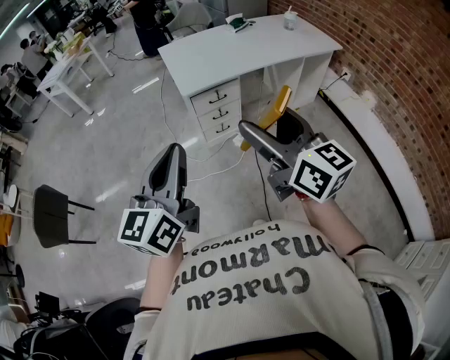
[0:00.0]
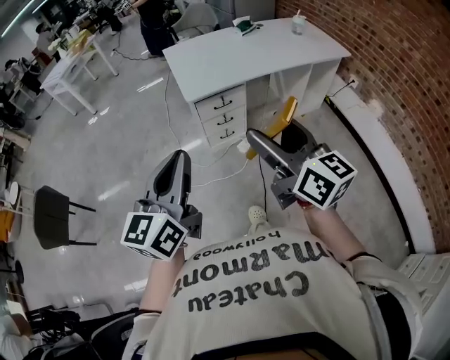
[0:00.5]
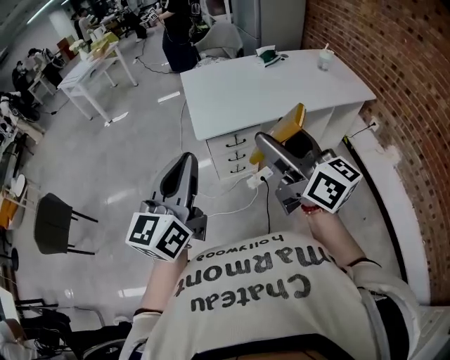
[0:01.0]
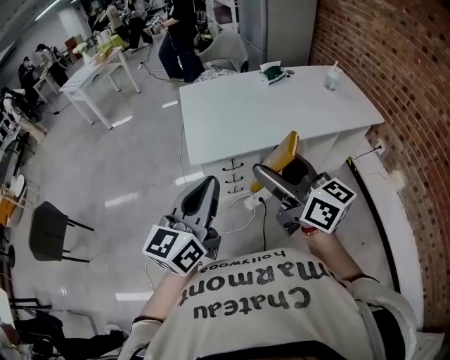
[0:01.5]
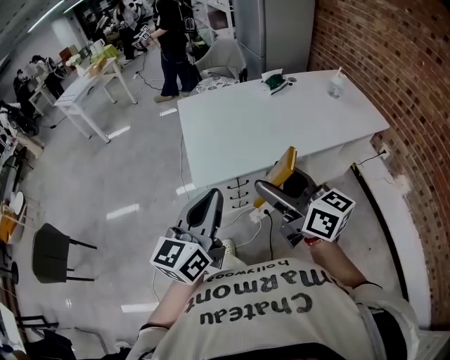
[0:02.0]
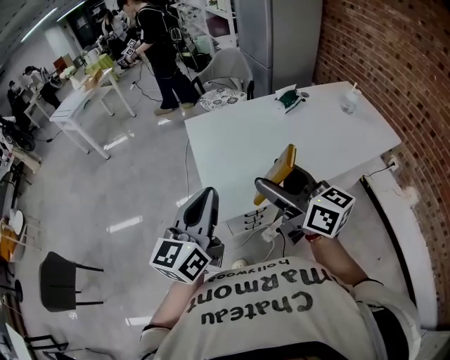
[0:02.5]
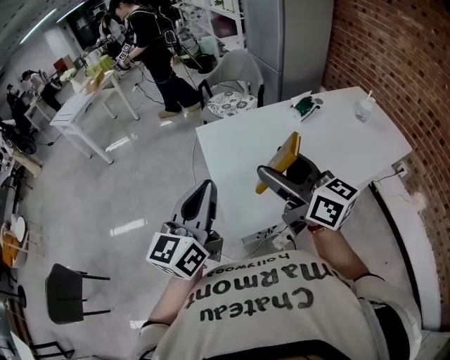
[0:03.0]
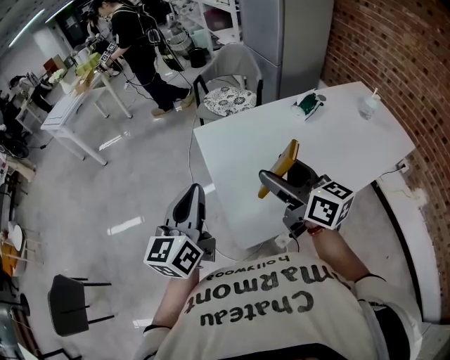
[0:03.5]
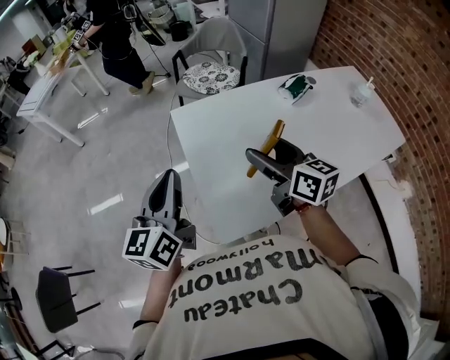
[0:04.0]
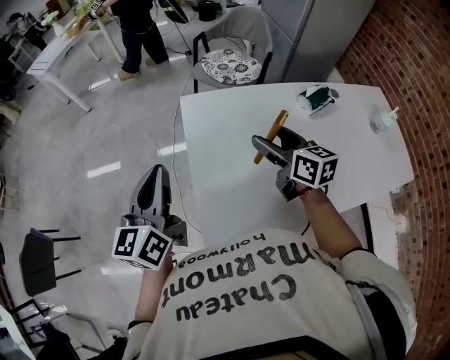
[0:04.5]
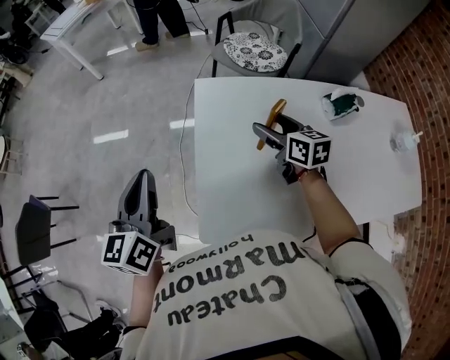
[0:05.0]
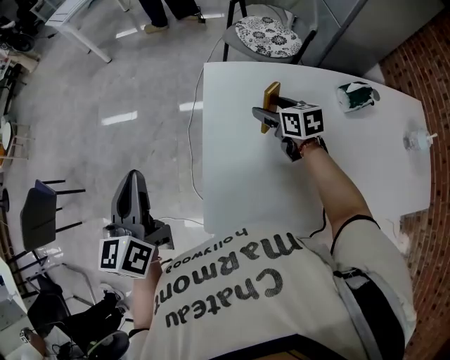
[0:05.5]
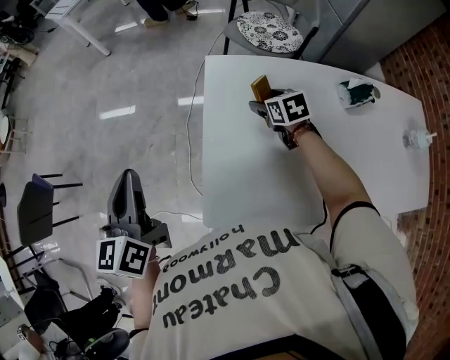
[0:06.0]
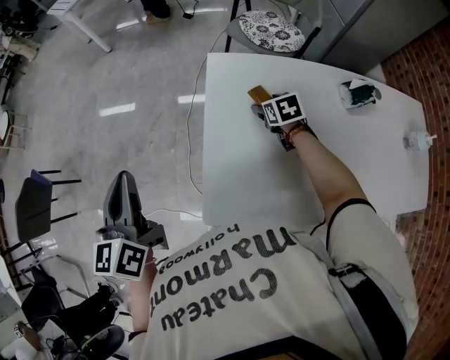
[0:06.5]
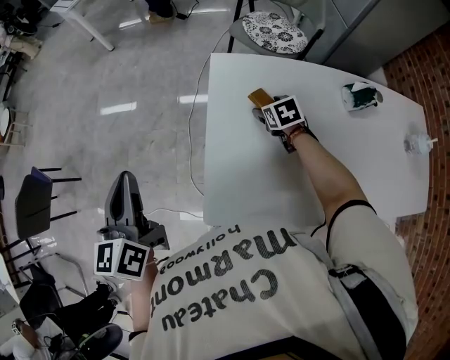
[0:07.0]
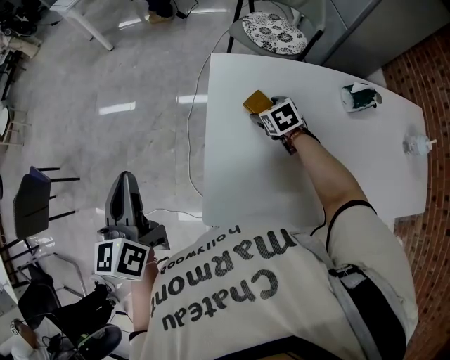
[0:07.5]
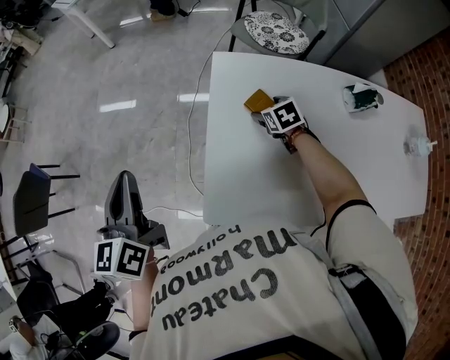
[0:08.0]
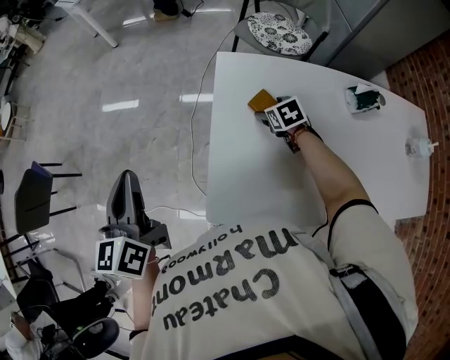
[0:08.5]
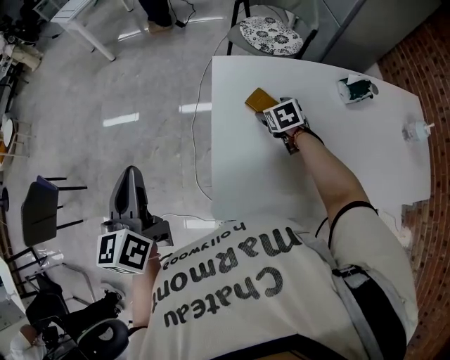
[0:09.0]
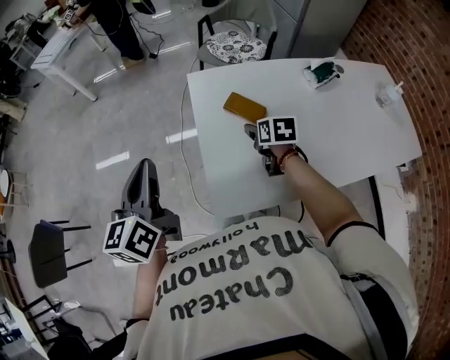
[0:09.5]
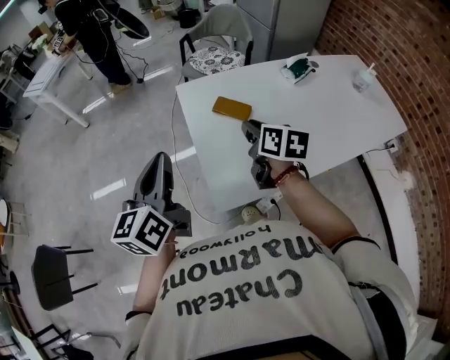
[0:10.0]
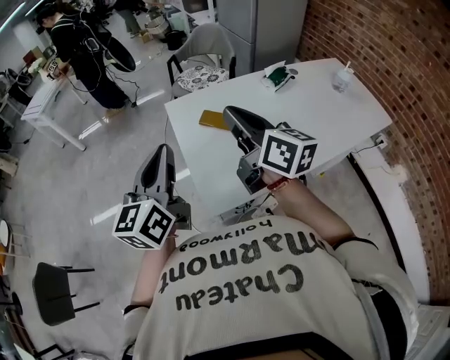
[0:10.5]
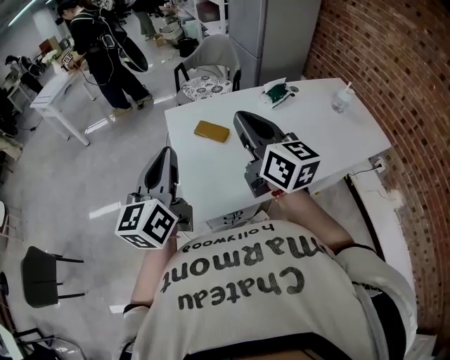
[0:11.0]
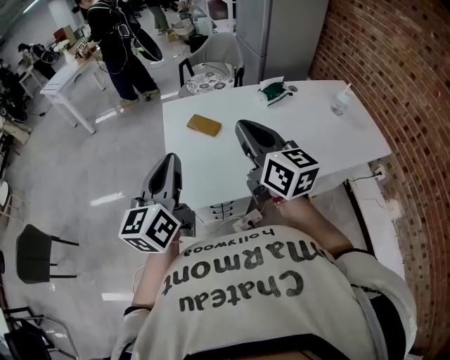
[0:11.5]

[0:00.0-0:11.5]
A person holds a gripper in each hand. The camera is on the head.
0:00.0 to 0:02.0: Both grippers travel together forward, about 35 cm.
0:02.0 to 0:04.0: The pair of grippers is taken forward, some 40 cm.
0:04.0 to 0:06.0: The right gripper moves downward, about 25 cm, and points its fingers some 40 degrees further downward. The left gripper moves some 10 cm, and turns by some 30 degrees.
0:06.0 to 0:07.5: The right gripper moves some 5 cm.
0:07.5 to 0:09.5: The right gripper heads backward and upward, covering approximately 15 cm, and turns by some 40 degrees.
0:09.5 to 0:11.5: The left gripper goes roughly 25 cm to the right and backward. Meanwhile the right gripper moves upward and backward, roughly 35 cm, points its fingers some 50 degrees further upward, and closes its fingers.

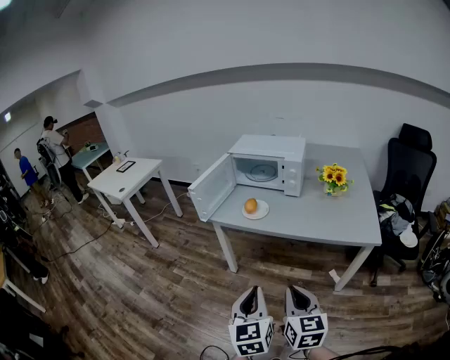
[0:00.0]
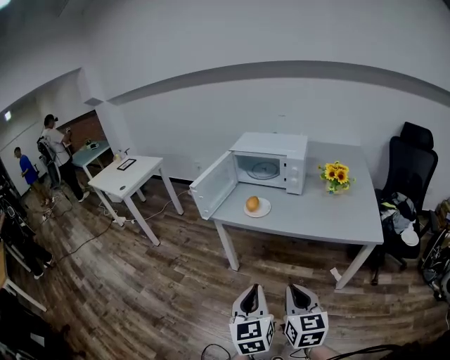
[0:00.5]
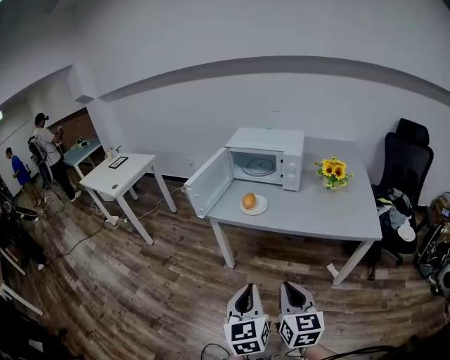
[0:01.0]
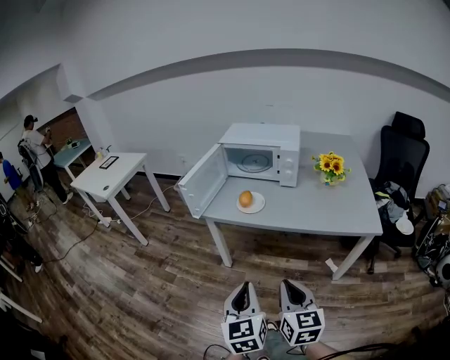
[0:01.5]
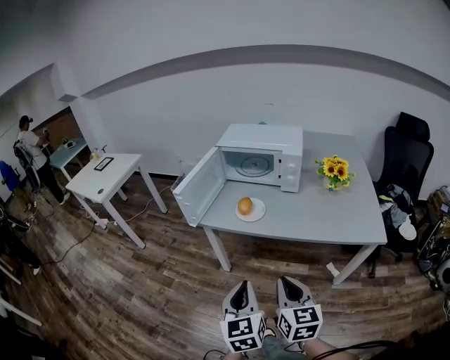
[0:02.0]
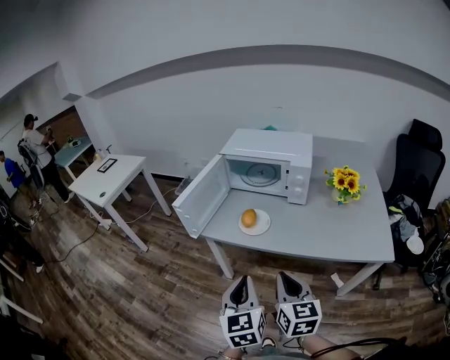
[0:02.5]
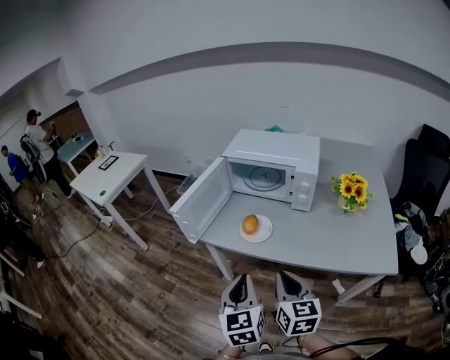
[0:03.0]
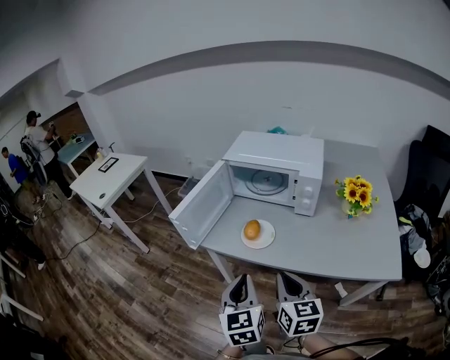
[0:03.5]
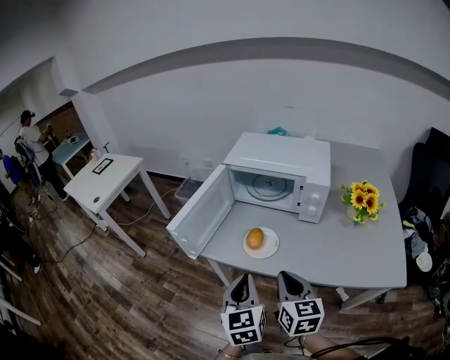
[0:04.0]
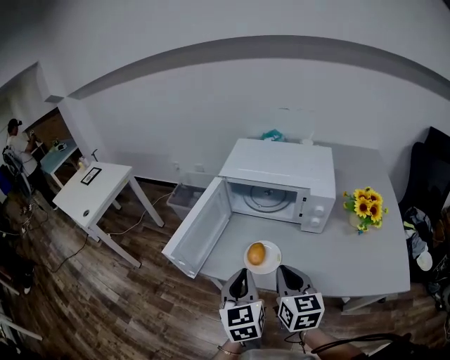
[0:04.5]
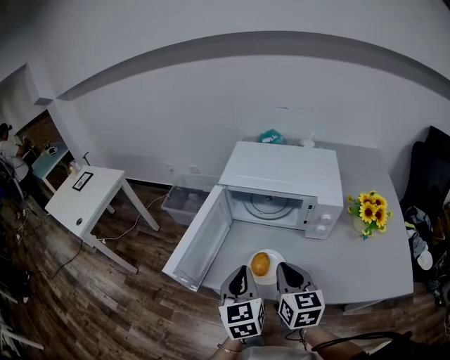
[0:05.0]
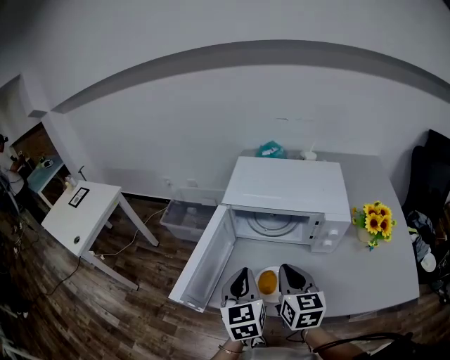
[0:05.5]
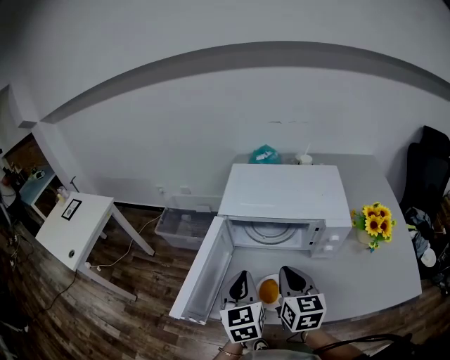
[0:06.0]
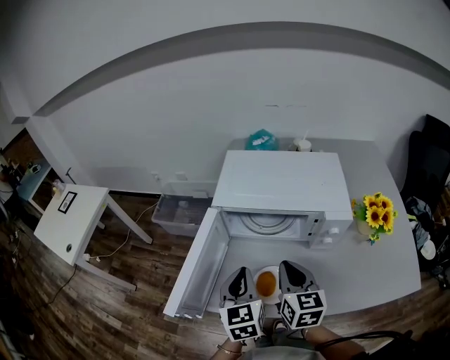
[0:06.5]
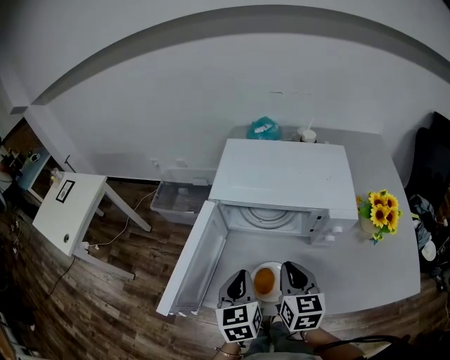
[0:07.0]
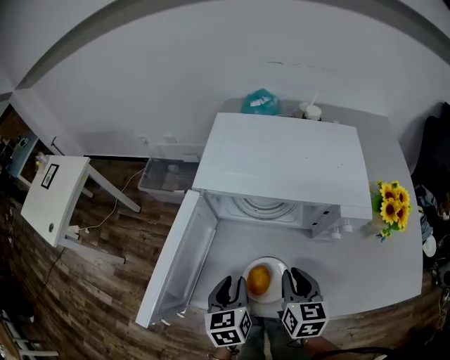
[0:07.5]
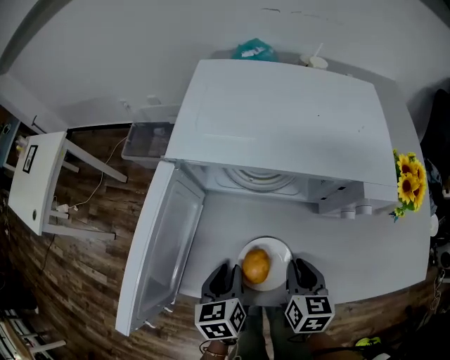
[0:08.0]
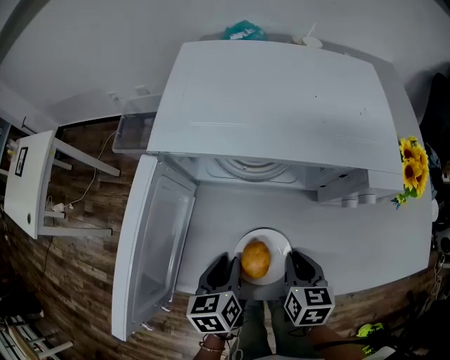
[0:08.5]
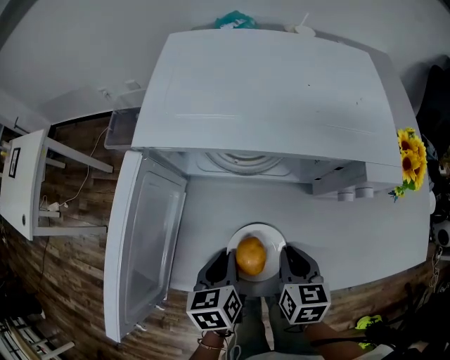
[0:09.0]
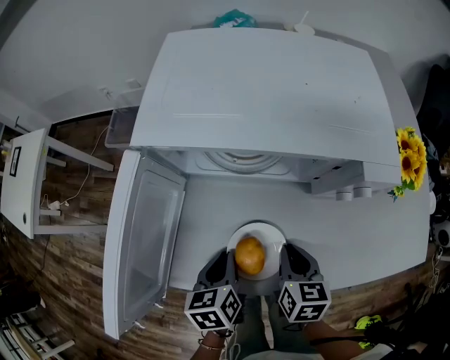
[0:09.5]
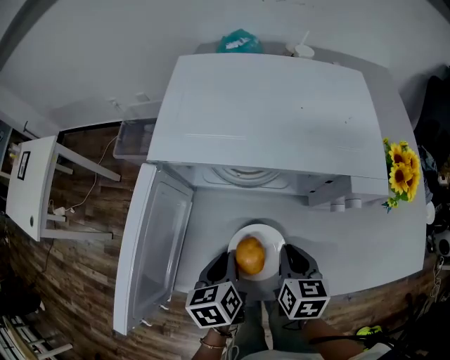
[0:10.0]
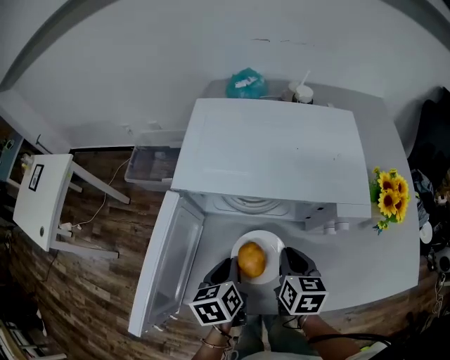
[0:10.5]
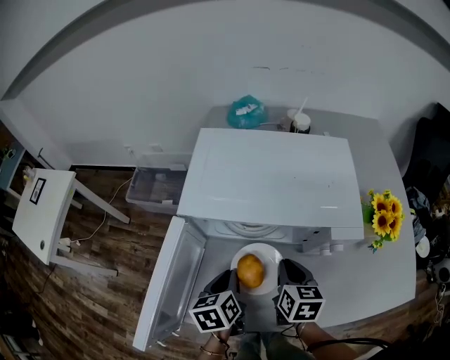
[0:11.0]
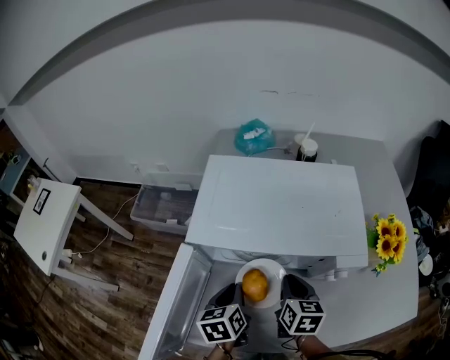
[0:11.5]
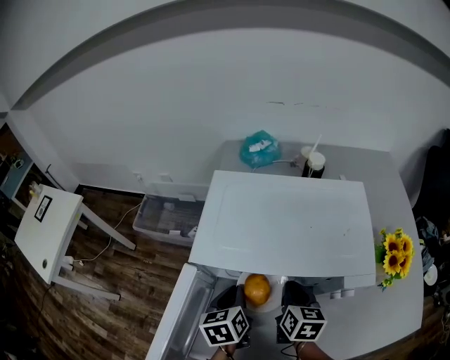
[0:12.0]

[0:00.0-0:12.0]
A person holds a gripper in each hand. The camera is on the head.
0:00.0 to 0:02.0: The two grippers go roughly 15 cm forward.
0:02.0 to 0:04.0: The grippers both shift forward by some 25 cm.
0:04.0 to 0:06.0: Both grippers move forward, approximately 25 cm.
0:06.0 to 0:08.0: The grippers both shift downward by about 20 cm. The right gripper swivels roughly 30 degrees, while the left gripper changes its angle by roughly 30 degrees, and opens.
0:08.0 to 0:10.0: The grippers move only a little.
0:10.0 to 0:12.0: The right gripper goes approximately 15 cm forward and upward. The left gripper shifts roughly 15 cm forward.

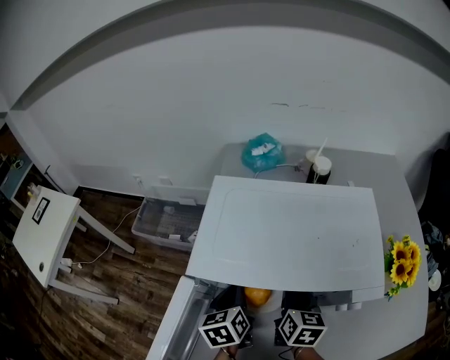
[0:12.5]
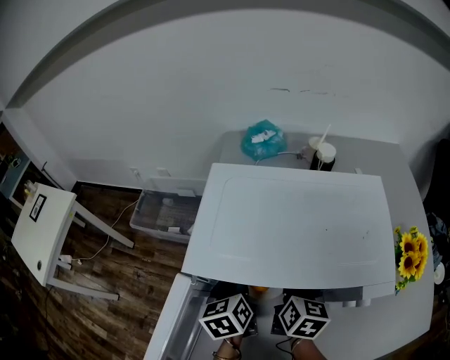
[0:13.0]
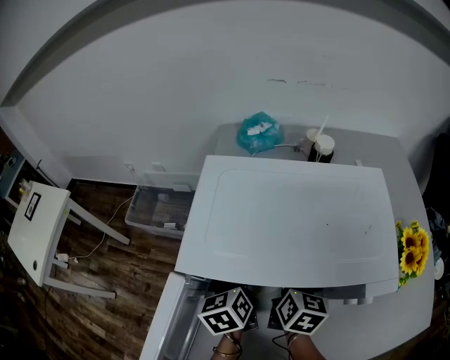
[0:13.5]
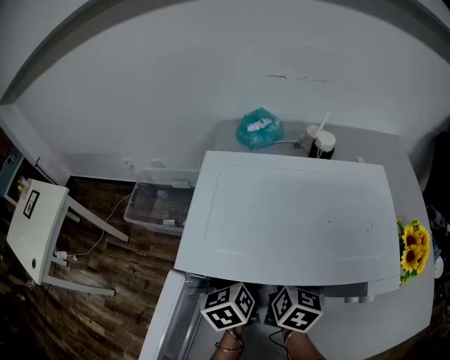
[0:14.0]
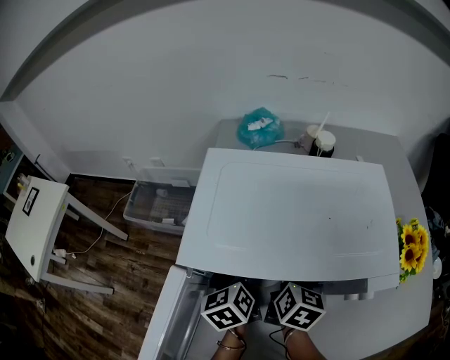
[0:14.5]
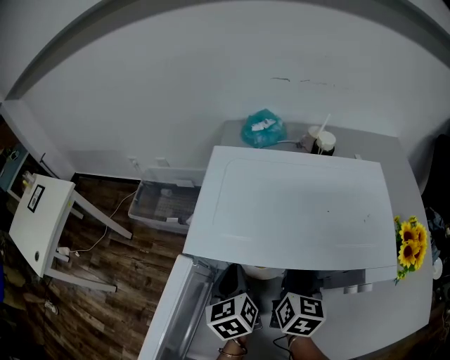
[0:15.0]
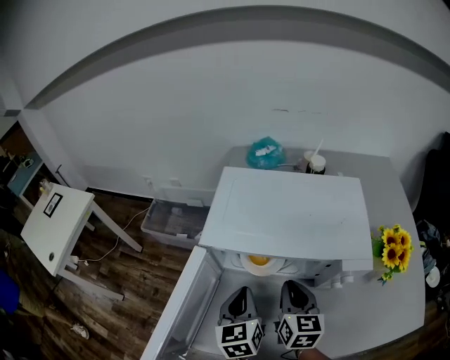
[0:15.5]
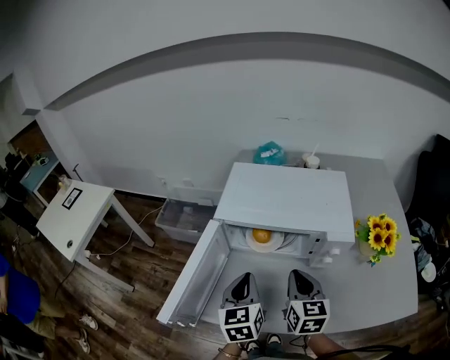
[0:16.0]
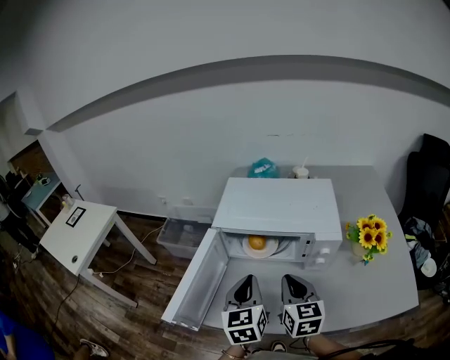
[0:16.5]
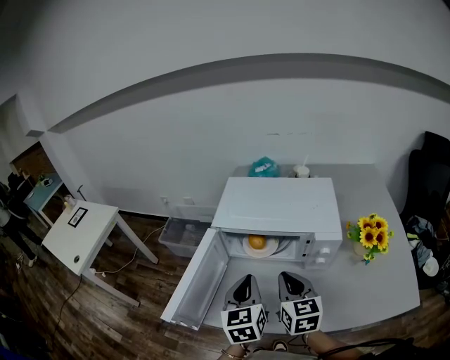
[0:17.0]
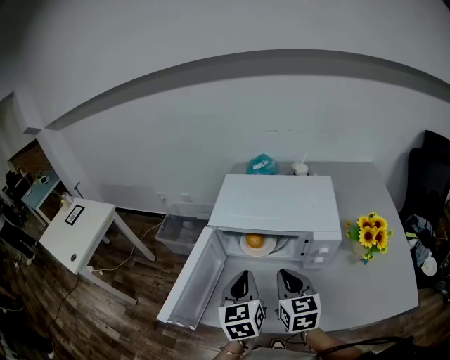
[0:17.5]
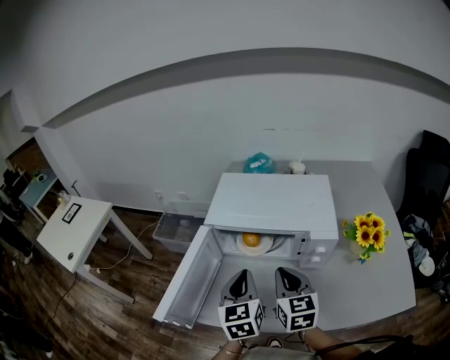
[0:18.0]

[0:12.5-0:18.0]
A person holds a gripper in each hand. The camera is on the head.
0:12.5 to 0:14.5: The left gripper shifts by roughly 5 cm.
0:14.5 to 0:16.0: The grippers both shift backward and upward by about 25 cm. The right gripper swivels about 30 degrees. Meanwhile the left gripper rotates approximately 20 degrees.
0:16.0 to 0:18.0: The grippers stay close to where they were, moving slightly.
